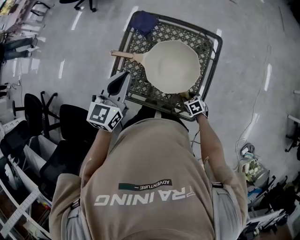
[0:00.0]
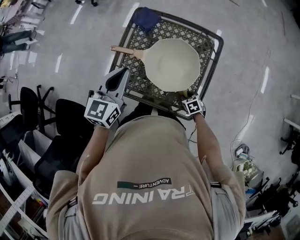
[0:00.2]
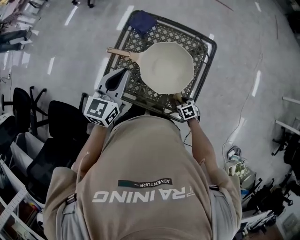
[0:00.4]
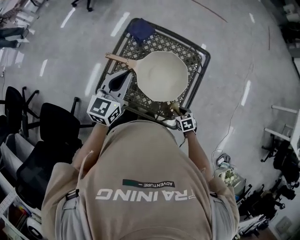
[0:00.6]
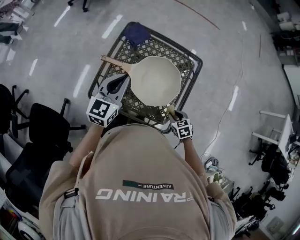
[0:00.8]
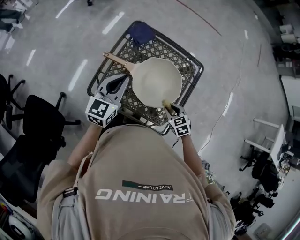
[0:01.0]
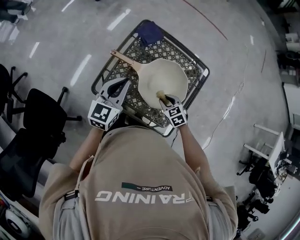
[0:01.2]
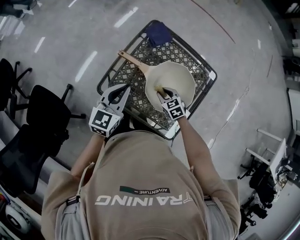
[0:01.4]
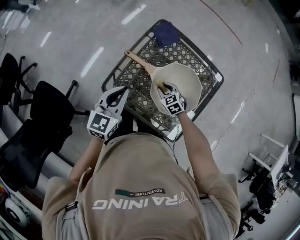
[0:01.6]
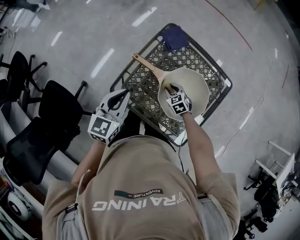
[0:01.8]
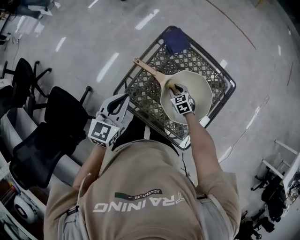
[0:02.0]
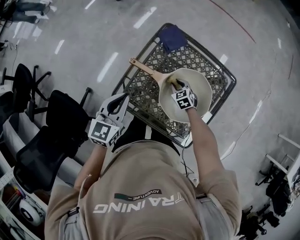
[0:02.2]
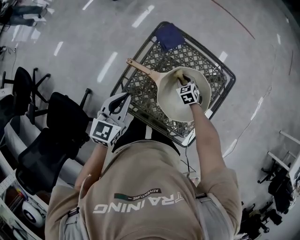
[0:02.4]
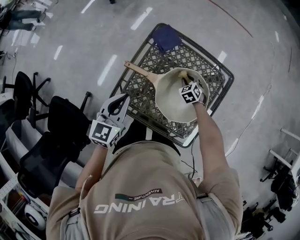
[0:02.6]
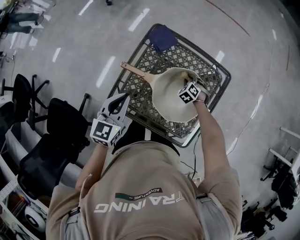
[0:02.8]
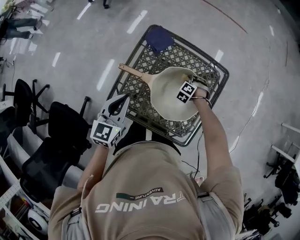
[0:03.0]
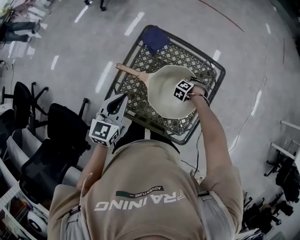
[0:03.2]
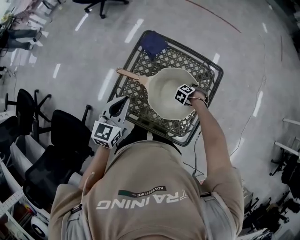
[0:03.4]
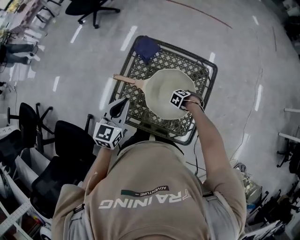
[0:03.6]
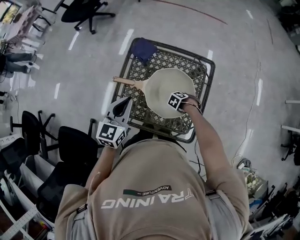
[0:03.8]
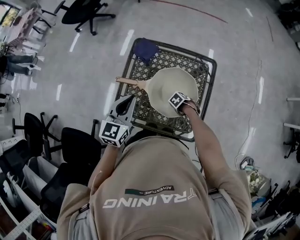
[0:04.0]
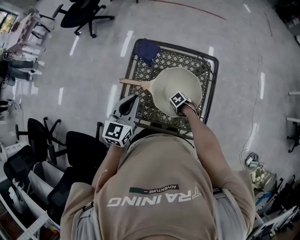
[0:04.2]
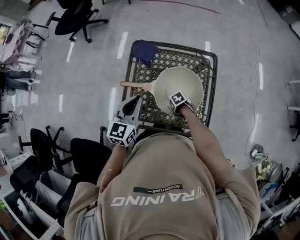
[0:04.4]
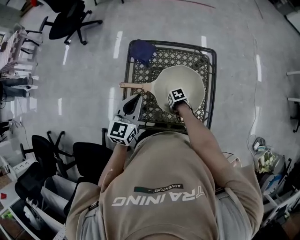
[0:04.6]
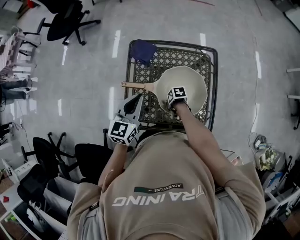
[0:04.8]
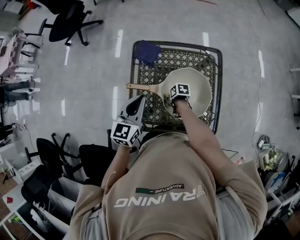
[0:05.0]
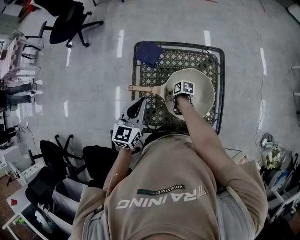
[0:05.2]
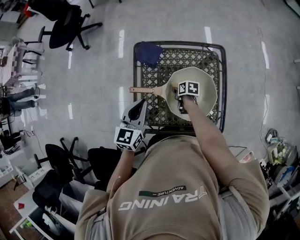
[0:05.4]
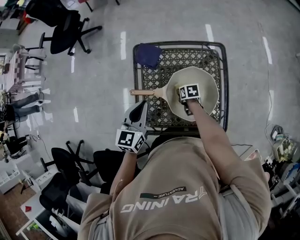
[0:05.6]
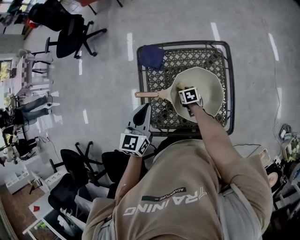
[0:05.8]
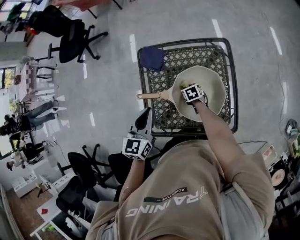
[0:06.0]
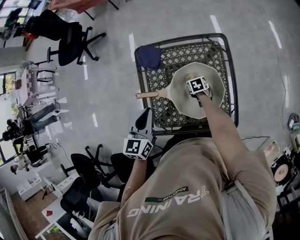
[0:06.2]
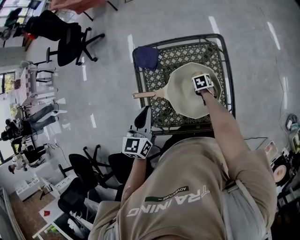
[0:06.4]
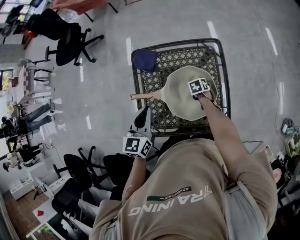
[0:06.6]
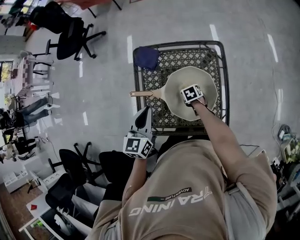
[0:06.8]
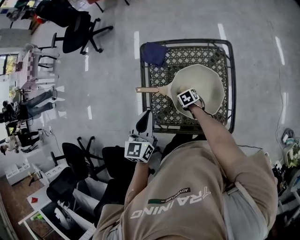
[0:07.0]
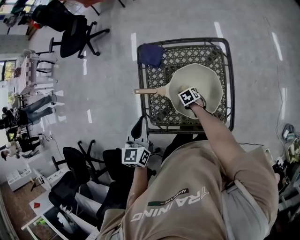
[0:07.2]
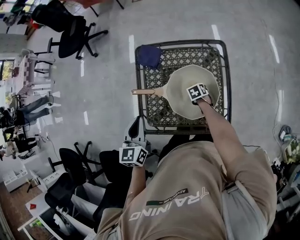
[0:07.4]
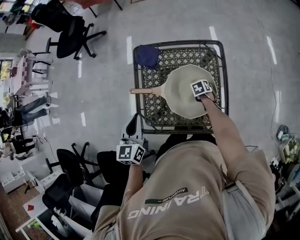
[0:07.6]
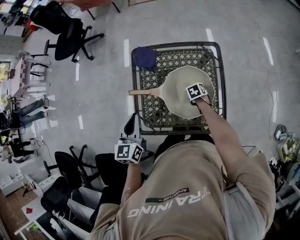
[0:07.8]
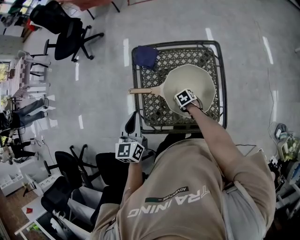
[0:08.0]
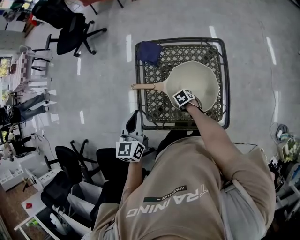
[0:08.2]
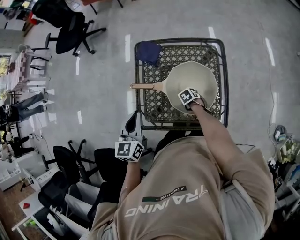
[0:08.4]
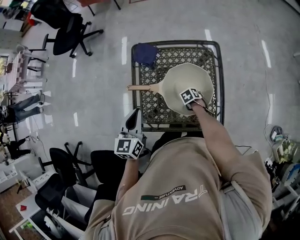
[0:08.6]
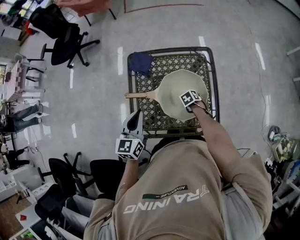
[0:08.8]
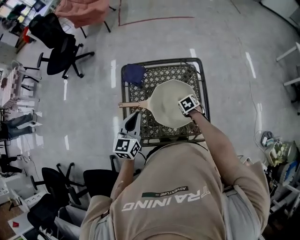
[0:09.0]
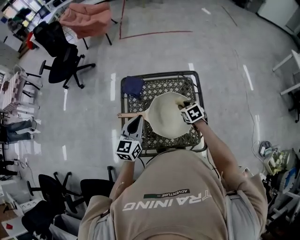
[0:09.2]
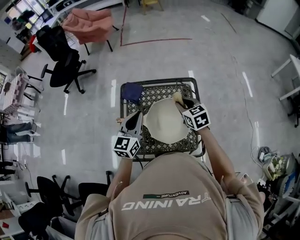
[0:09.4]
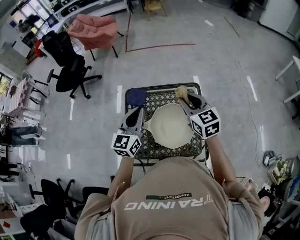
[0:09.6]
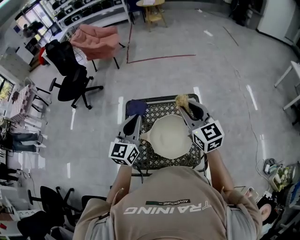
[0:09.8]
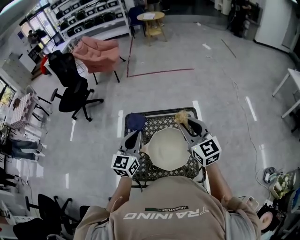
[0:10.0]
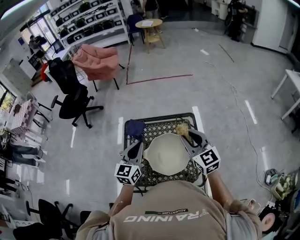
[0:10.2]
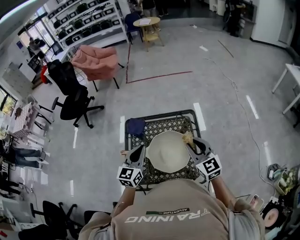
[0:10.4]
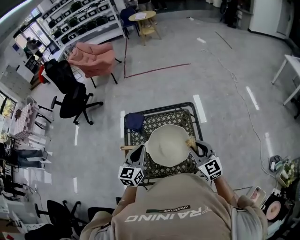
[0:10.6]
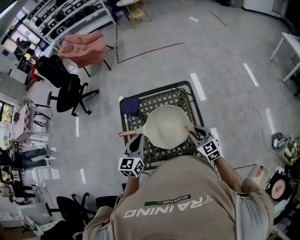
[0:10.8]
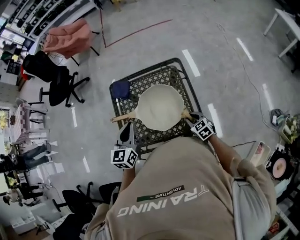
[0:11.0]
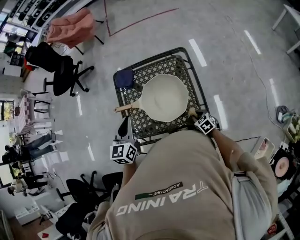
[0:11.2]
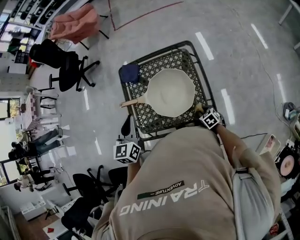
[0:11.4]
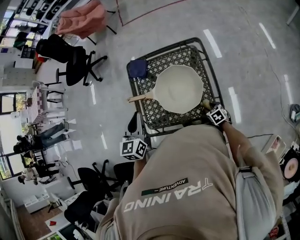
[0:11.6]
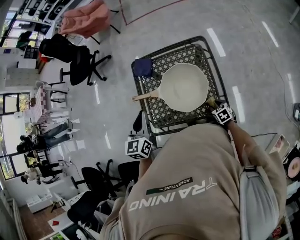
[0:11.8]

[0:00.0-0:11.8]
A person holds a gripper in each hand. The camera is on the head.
0:00.0 to 0:01.4: The right gripper heads forward, to the left and upward, covering roughly 25 cm, and rotates roughly 30 degrees; the left gripper shifts some 10 cm to the left and downward.
0:01.4 to 0:03.0: The right gripper shifts by roughly 20 cm, and changes its angle by about 50 degrees.
0:03.0 to 0:04.4: The right gripper moves about 20 cm, and twists approximately 60 degrees clockwise, seen from behind.
0:04.4 to 0:06.0: The right gripper changes place by roughly 15 cm, and changes its angle by roughly 30 degrees.
0:06.0 to 0:07.4: The left gripper changes place by roughly 5 cm.
0:08.8 to 0:10.4: The right gripper heads upward, covering some 40 cm, and tips its fingers upward by some 80 degrees; the left gripper changes place by roughly 15 cm.
0:10.4 to 0:11.8: The left gripper goes some 10 cm to the left and backward; the right gripper moves downward, roughly 40 cm, and points its fingers some 50 degrees further downward.

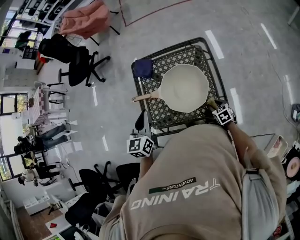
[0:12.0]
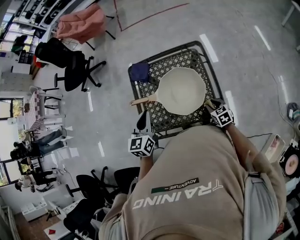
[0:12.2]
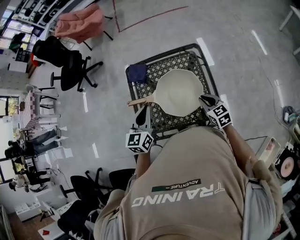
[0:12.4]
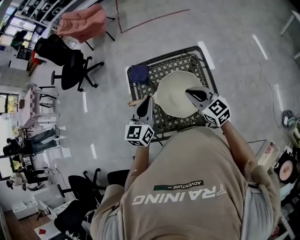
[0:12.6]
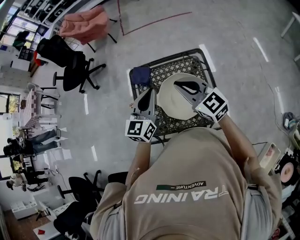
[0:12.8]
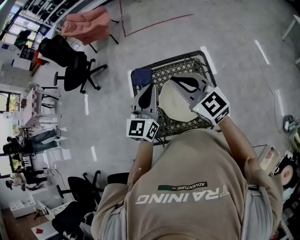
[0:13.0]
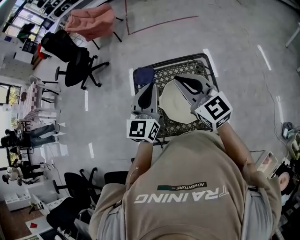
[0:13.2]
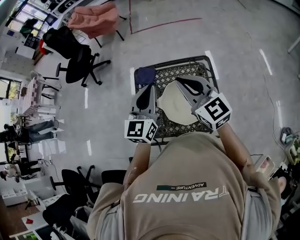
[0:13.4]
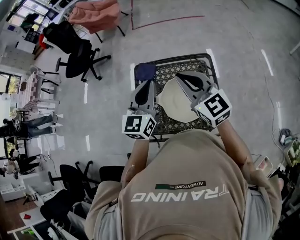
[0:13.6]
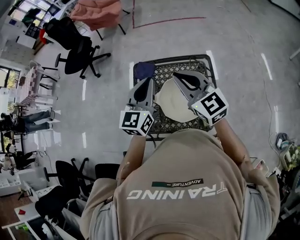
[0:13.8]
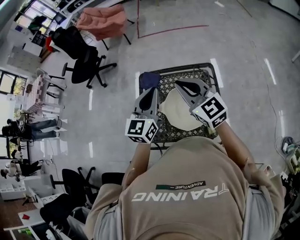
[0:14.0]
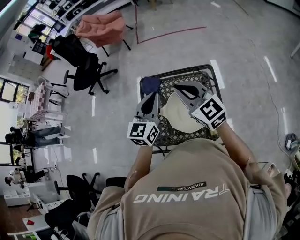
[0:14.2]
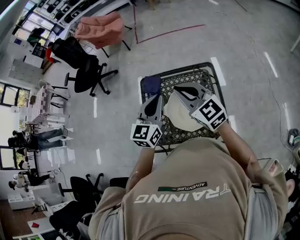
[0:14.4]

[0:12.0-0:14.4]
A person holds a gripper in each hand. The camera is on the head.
0:12.0 to 0:13.2: The left gripper travels upward, to the right and forward by roughly 20 cm, and changes its angle by roughly 20 degrees; the right gripper travels upward by roughly 50 cm, tilts its fingers some 50 degrees upward, and closes up.
0:13.2 to 0:14.4: The grippers make only small movements.

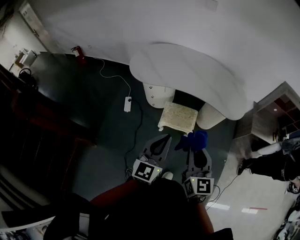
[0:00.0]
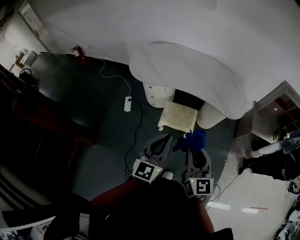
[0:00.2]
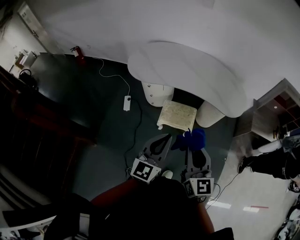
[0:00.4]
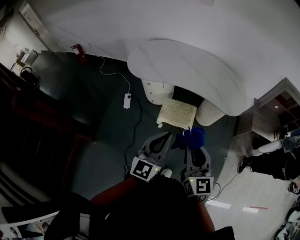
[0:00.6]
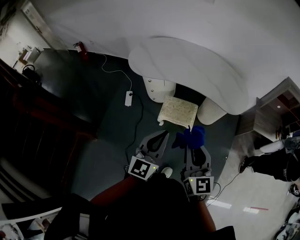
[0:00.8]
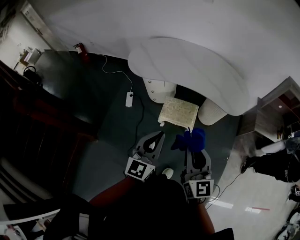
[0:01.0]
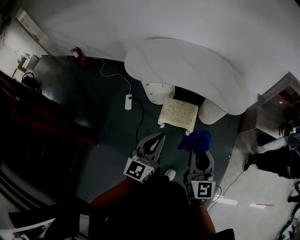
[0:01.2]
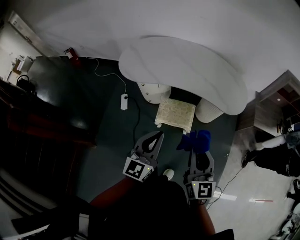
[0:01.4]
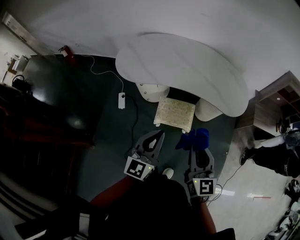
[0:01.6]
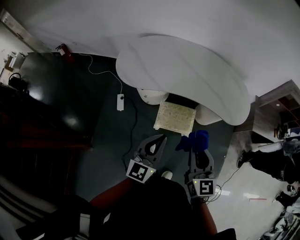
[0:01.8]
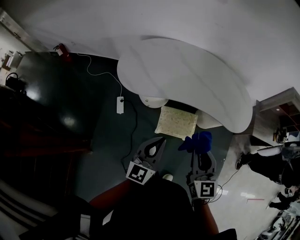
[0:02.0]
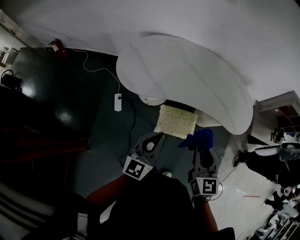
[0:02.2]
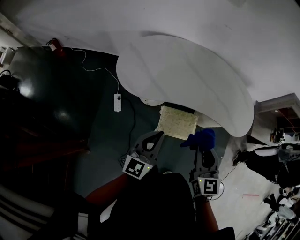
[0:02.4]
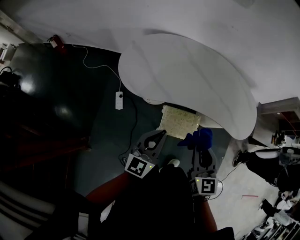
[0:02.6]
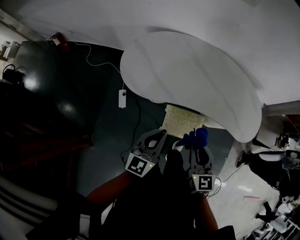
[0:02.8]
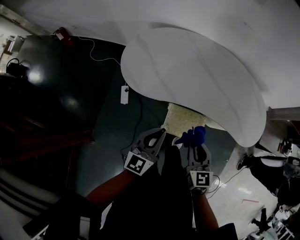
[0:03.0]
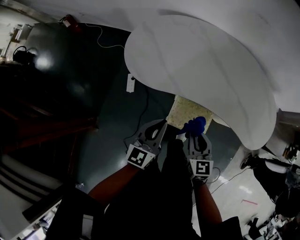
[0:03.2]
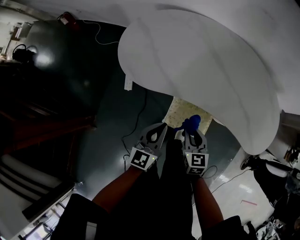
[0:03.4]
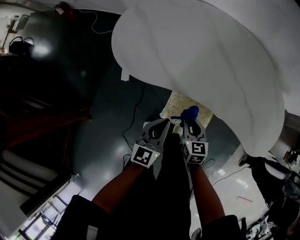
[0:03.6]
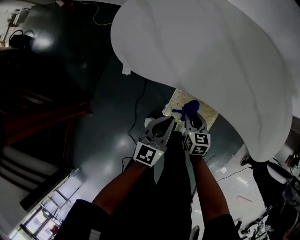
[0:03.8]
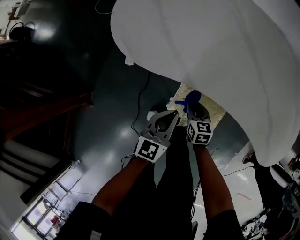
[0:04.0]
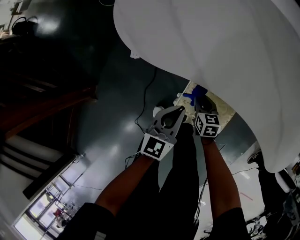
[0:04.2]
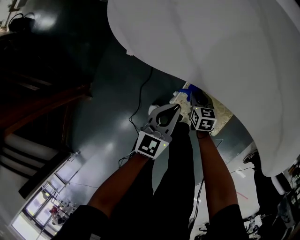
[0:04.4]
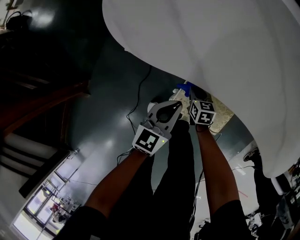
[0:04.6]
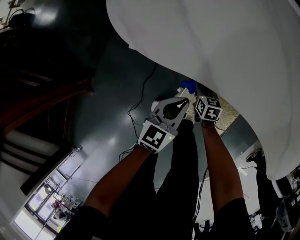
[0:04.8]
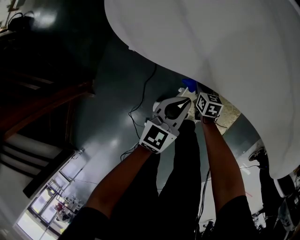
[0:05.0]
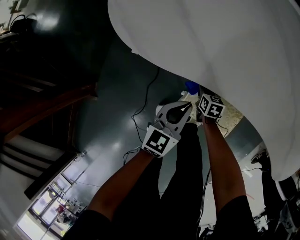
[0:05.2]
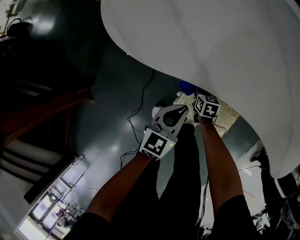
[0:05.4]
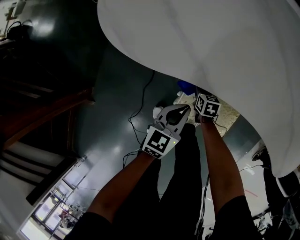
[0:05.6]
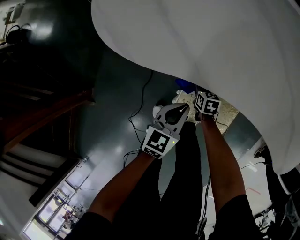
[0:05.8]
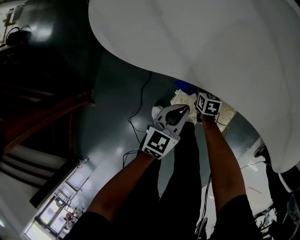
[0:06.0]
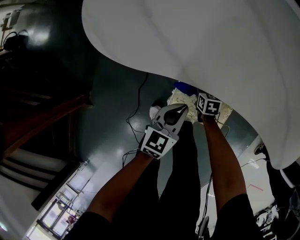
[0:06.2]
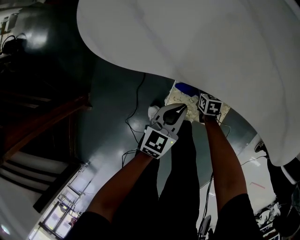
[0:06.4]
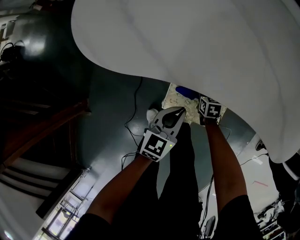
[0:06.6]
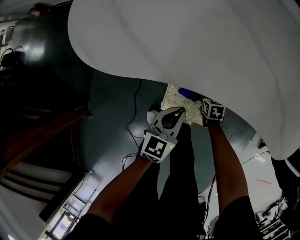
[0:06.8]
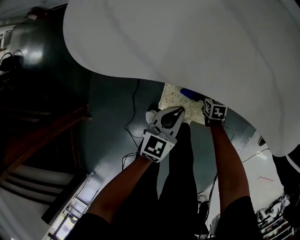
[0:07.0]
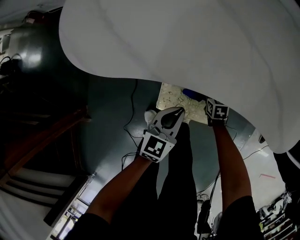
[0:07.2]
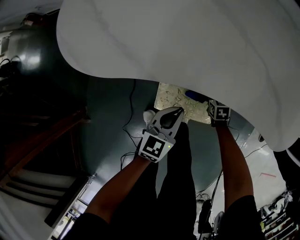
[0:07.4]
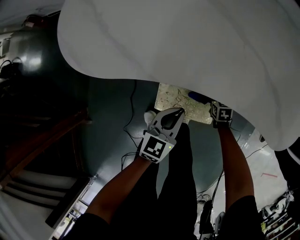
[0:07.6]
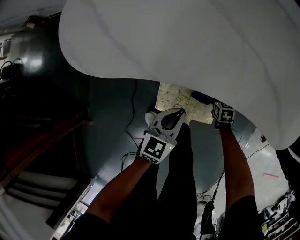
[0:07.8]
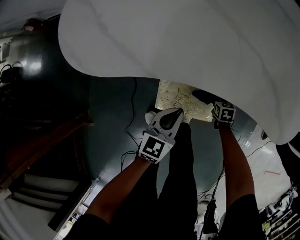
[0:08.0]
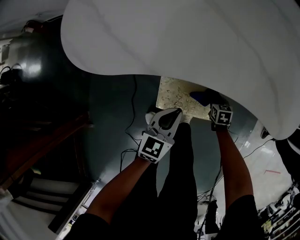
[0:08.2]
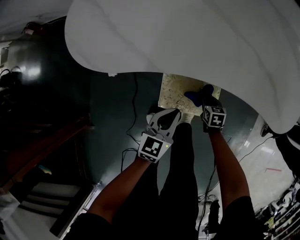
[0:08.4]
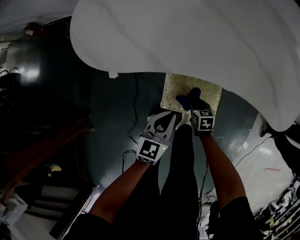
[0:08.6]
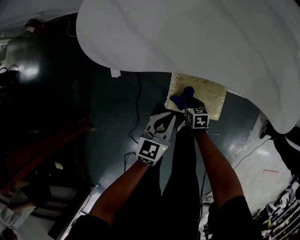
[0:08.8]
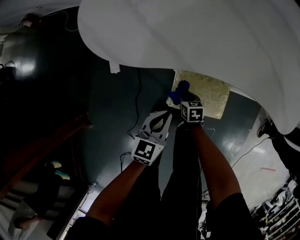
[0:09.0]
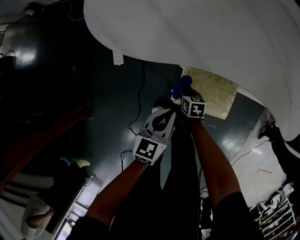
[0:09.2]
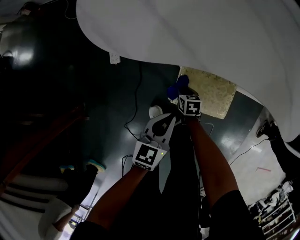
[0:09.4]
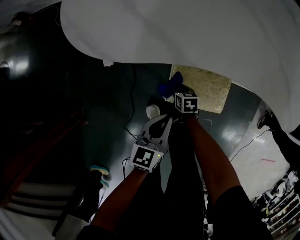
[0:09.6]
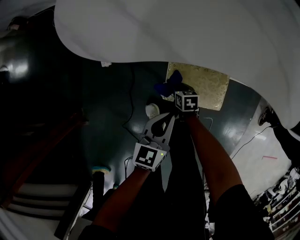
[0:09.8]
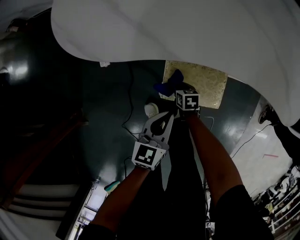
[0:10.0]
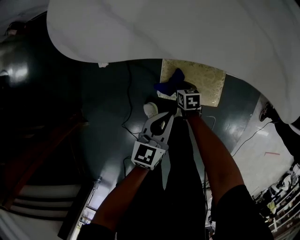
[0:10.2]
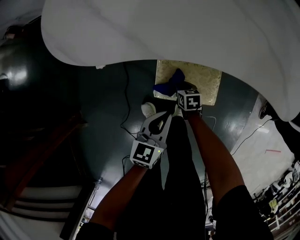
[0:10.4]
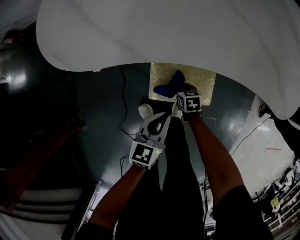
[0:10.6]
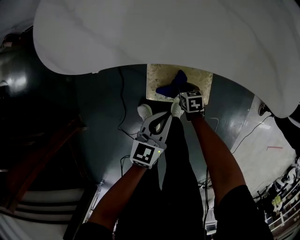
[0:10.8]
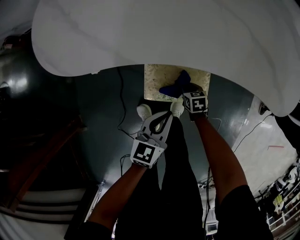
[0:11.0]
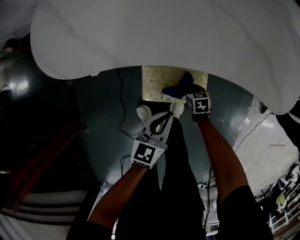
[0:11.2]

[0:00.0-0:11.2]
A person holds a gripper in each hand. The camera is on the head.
0:00.0 to 0:01.6: The two grippers go roughly 10 cm forward.
0:01.6 to 0:03.2: The left gripper goes approximately 30 cm forward, to the left and downward. Meanwhile the right gripper moves forward, downward and to the left, approximately 35 cm, and rotates approximately 20 degrees.
0:03.2 to 0:04.8: The right gripper is displaced downward by roughly 40 cm, and changes its angle by approximately 30 degrees, while the left gripper moves downward, approximately 30 cm.
0:04.8 to 0:06.4: The right gripper moves to the right and downward, approximately 10 cm. Meanwhile the left gripper goes roughly 5 cm to the right.
0:06.4 to 0:08.0: The right gripper goes roughly 20 cm to the right. The left gripper heads to the right, covering approximately 5 cm.
0:08.0 to 0:09.6: The right gripper moves to the left, roughly 30 cm. Meanwhile the left gripper is displaced to the left and backward by approximately 15 cm.
0:09.6 to 0:11.2: Both grippers move to the right, about 15 cm.
